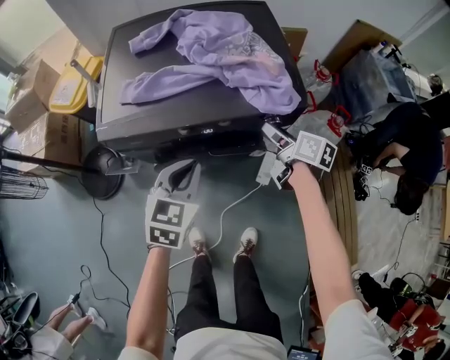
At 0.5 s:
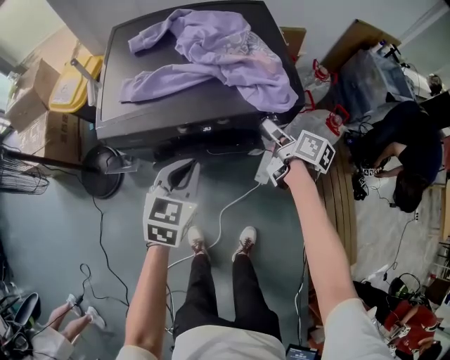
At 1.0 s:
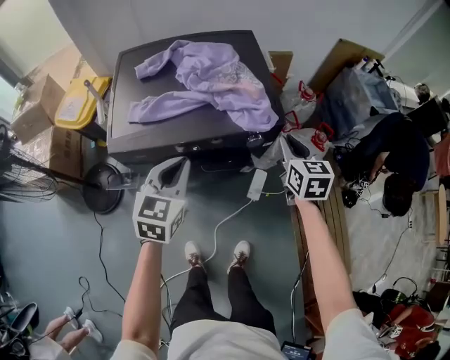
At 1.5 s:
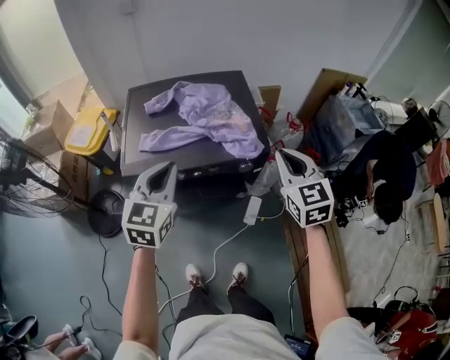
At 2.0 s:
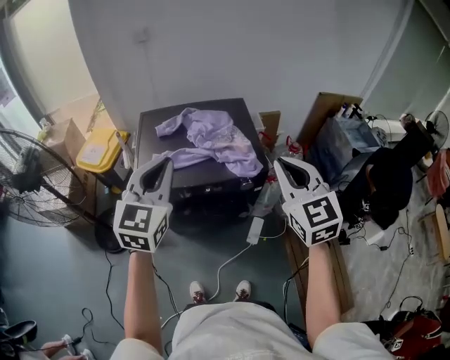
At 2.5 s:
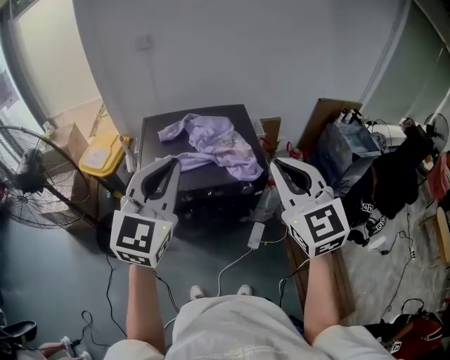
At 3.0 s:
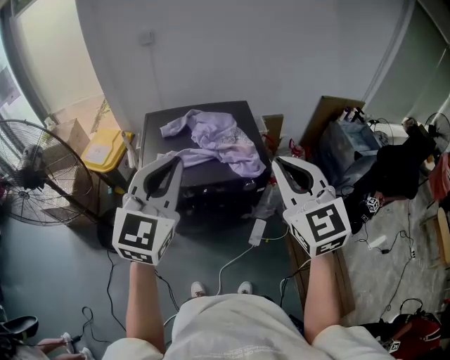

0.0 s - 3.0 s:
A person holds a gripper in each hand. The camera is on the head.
0.0 s - 1.5 s: Both grippers travel together upward, some 25 cm. The right gripper twists some 60 degrees counterclockwise, seen from behind, and closes its fingers.
1.5 s - 3.0 s: The right gripper moves upward and backward, some 20 cm. The left gripper shifts approximately 20 cm upward.

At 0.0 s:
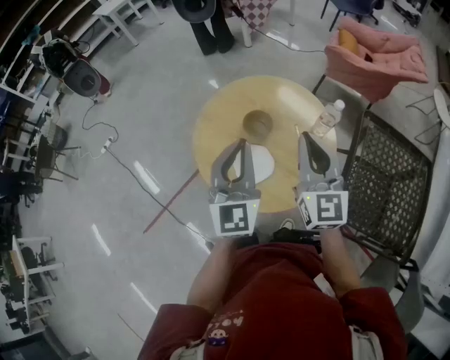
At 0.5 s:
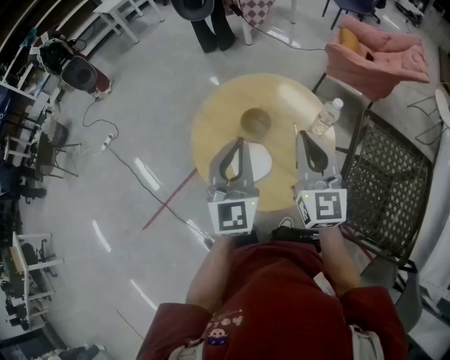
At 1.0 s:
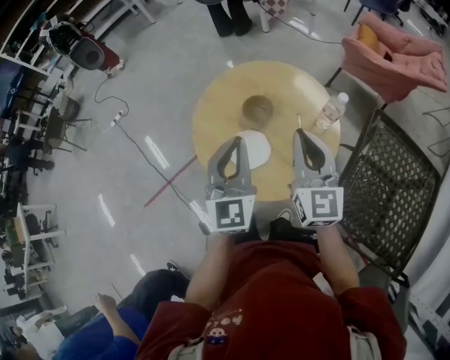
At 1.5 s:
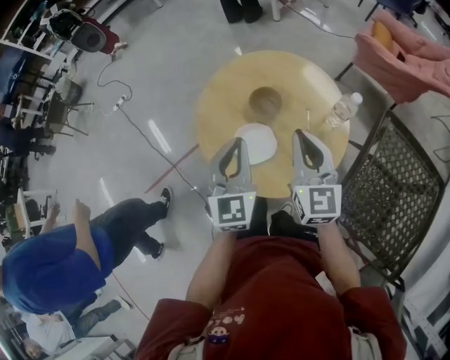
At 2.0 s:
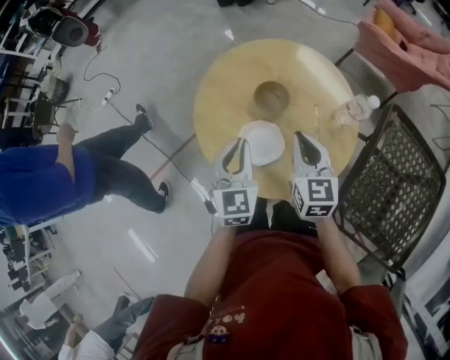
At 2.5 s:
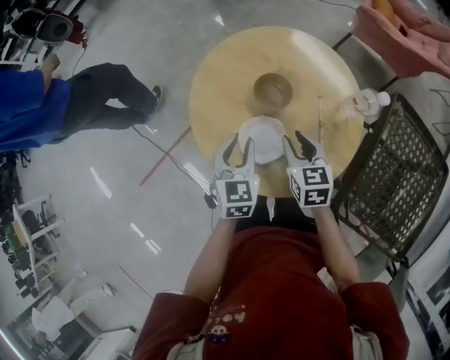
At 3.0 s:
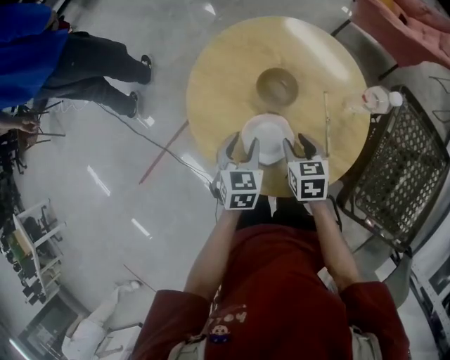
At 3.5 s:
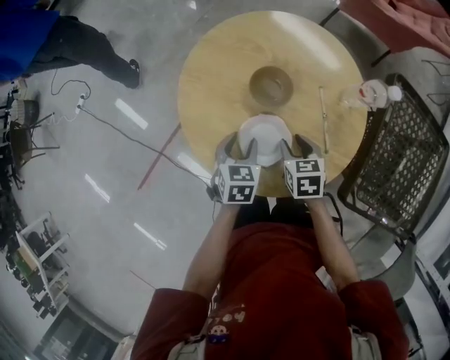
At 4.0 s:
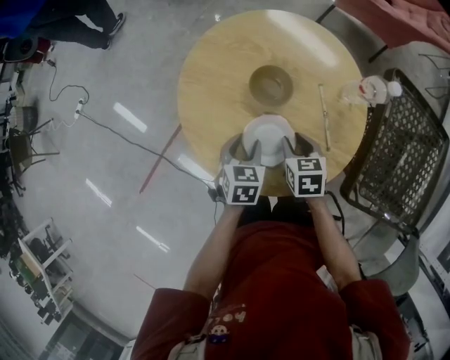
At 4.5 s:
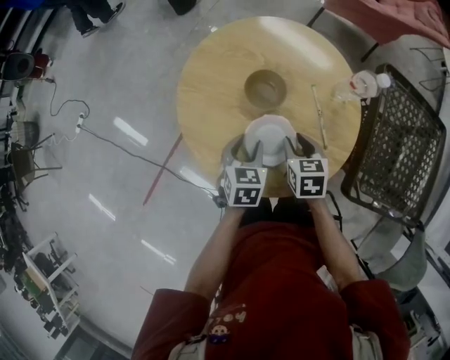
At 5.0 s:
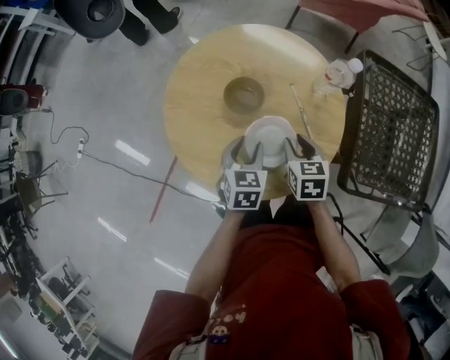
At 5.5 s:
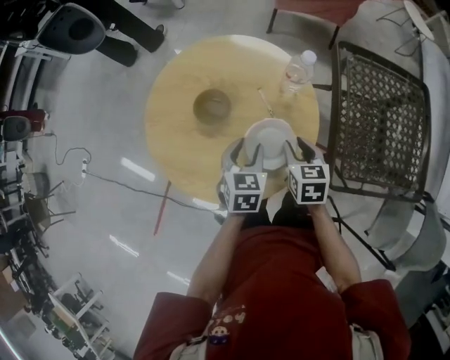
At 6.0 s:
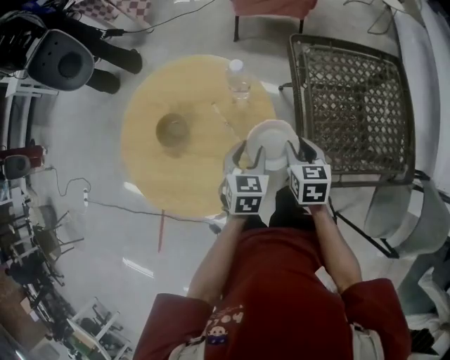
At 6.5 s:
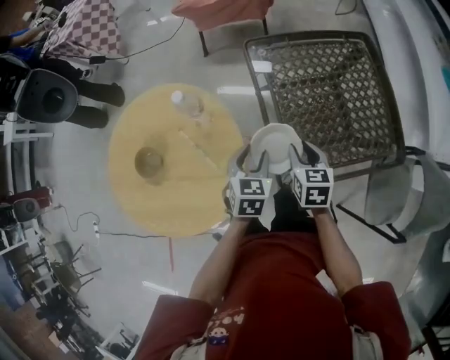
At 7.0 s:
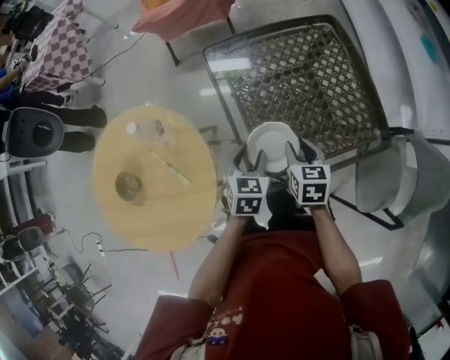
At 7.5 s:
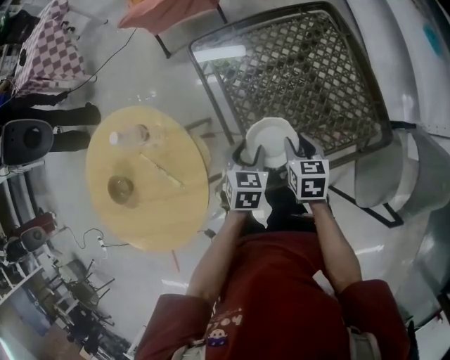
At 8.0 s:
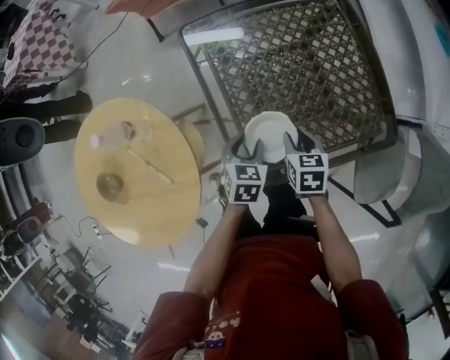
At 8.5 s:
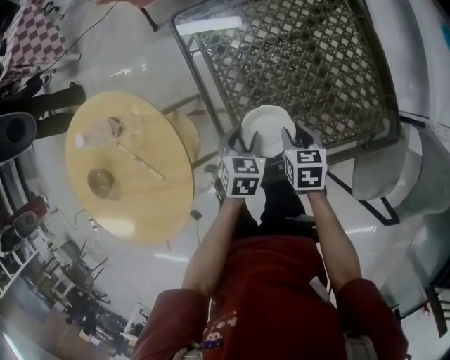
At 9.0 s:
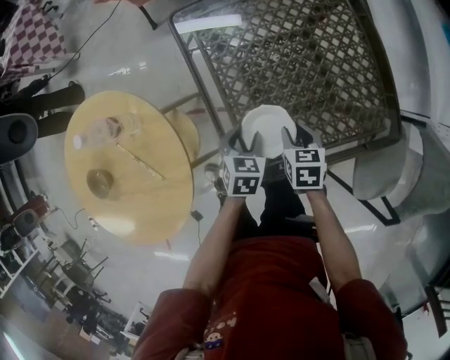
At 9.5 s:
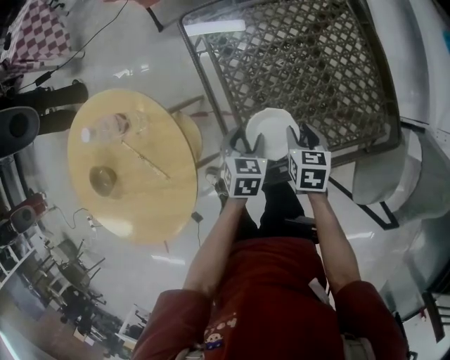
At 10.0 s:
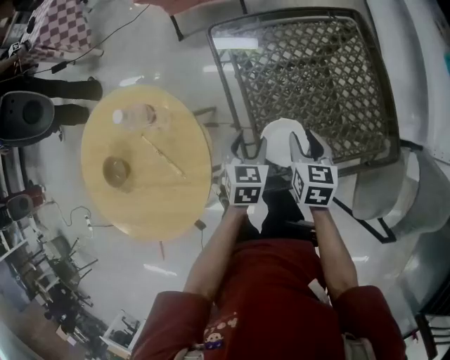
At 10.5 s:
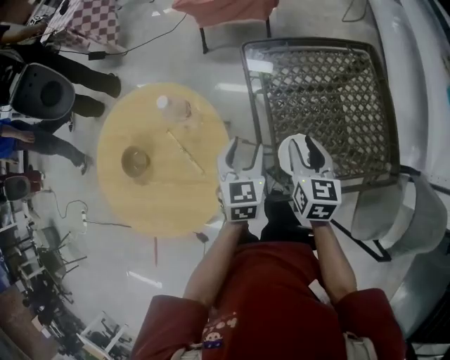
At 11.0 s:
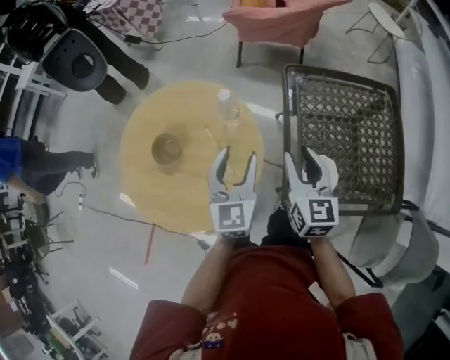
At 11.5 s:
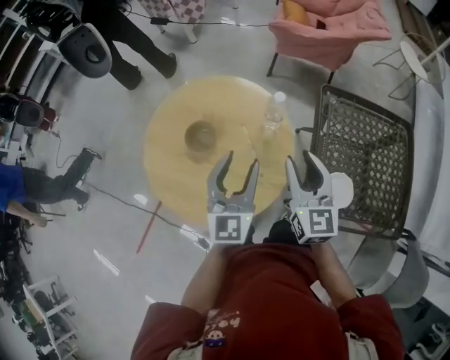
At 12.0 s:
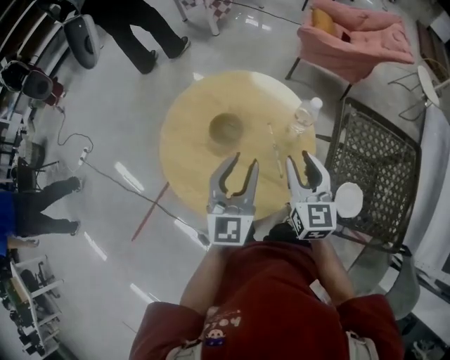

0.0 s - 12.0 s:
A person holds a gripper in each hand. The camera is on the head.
0.0 s - 2.0 s: Both grippers move downward, some 15 cm. The left gripper turns by roughly 30 degrees. The right gripper swivels about 30 degrees.
2.0 s - 4.0 s: Both grippers travel together downward, roughly 20 cm. The right gripper points its fingers about 30 degrees further downward, and opens. Meanwhile the left gripper points its fingers about 30 degrees further downward, and opens its fingers.
4.0 s - 6.0 s: The grippers both shift to the right by approximately 30 cm. The left gripper rotates about 30 degrees, while the right gripper swivels roughly 30 degrees.
6.0 s - 8.0 s: The two grippers go approximately 25 cm to the right and downward. The left gripper turns by some 20 degrees.
8.0 s - 10.0 s: The right gripper moves upward, roughly 5 cm; the left gripper moves roughly 5 cm.
10.0 s - 12.0 s: The left gripper changes place by about 50 cm, points its fingers about 50 degrees further upward, and closes its fingers. The right gripper ends up about 40 cm from where it was, and turns by roughly 50 degrees.

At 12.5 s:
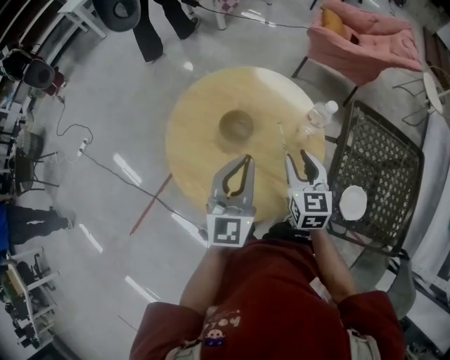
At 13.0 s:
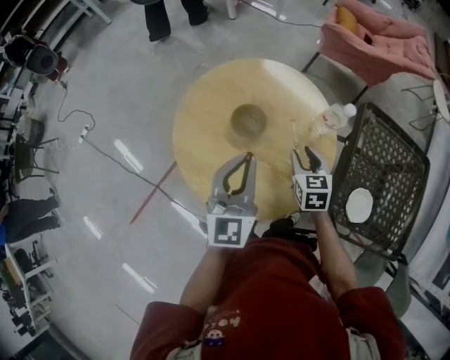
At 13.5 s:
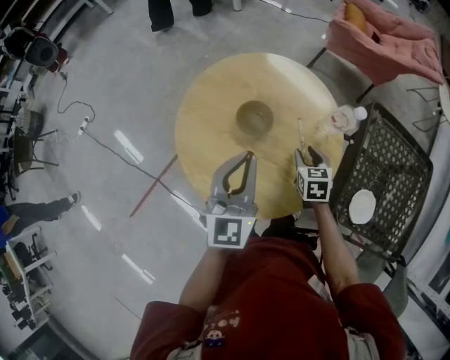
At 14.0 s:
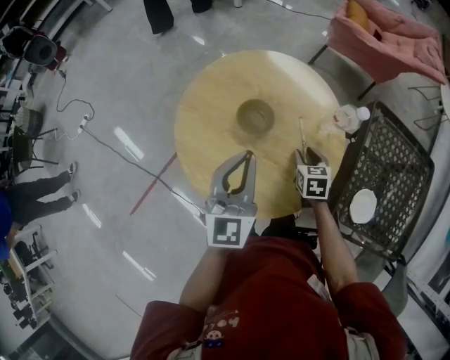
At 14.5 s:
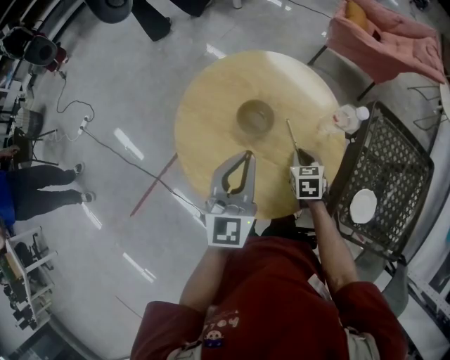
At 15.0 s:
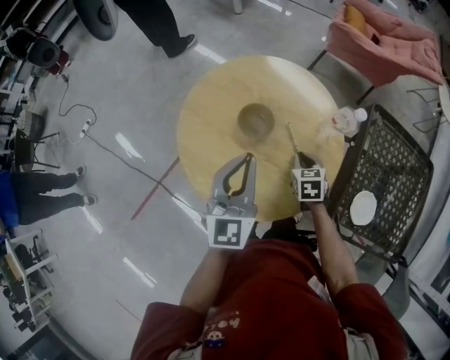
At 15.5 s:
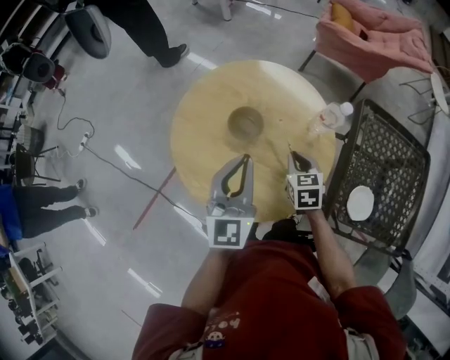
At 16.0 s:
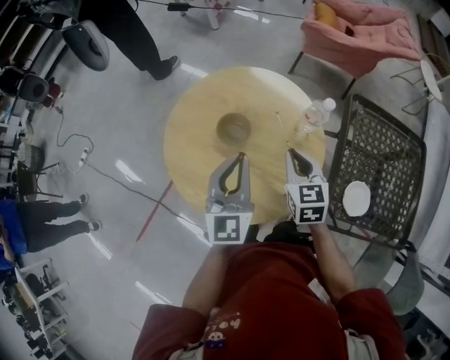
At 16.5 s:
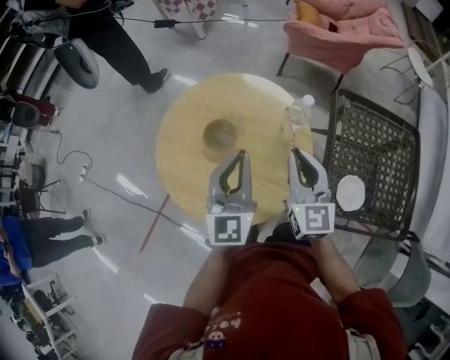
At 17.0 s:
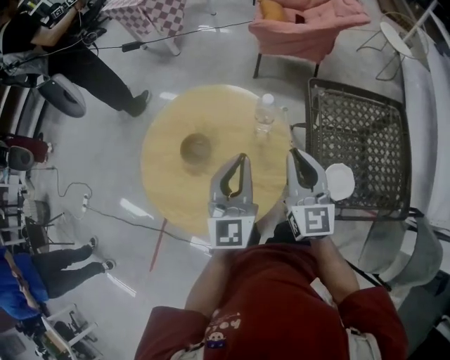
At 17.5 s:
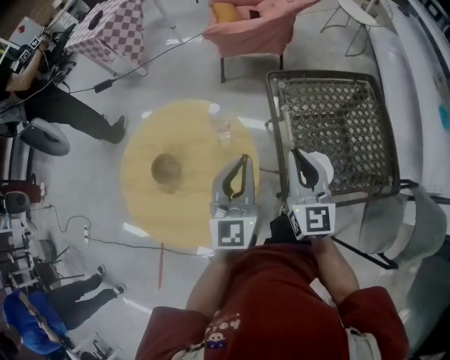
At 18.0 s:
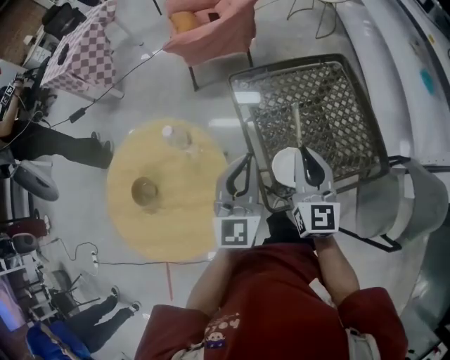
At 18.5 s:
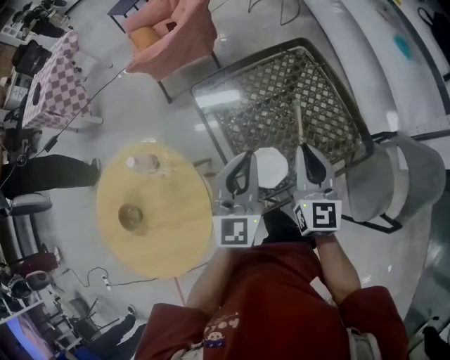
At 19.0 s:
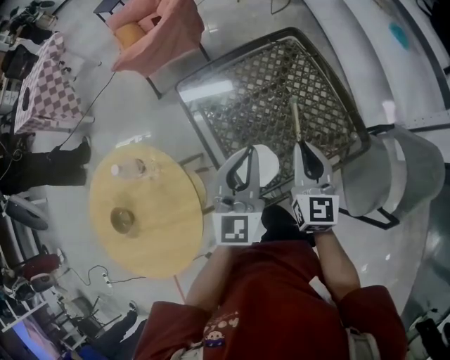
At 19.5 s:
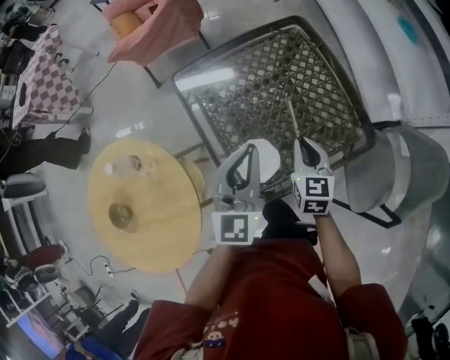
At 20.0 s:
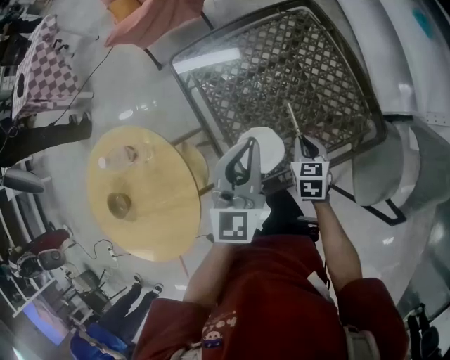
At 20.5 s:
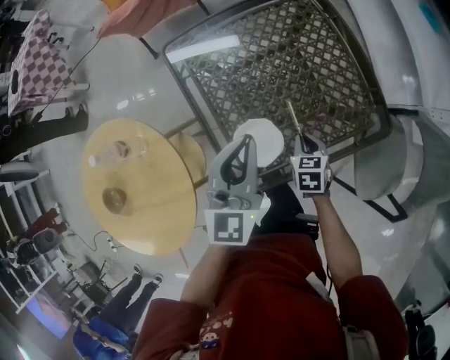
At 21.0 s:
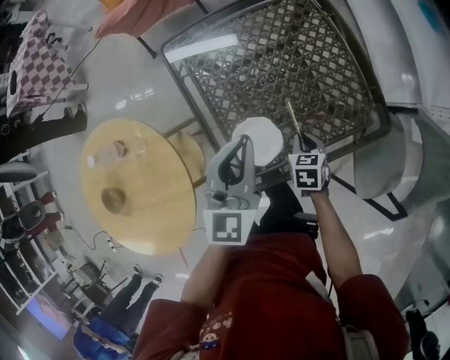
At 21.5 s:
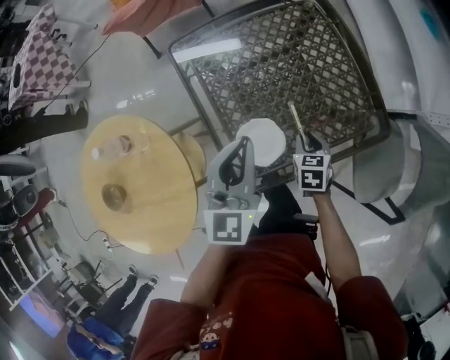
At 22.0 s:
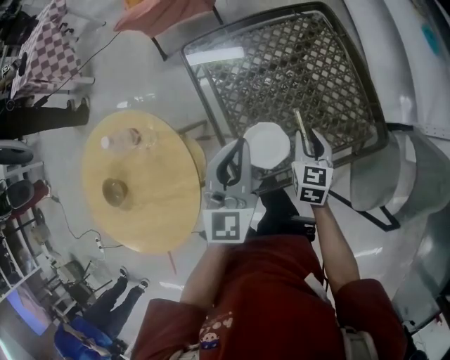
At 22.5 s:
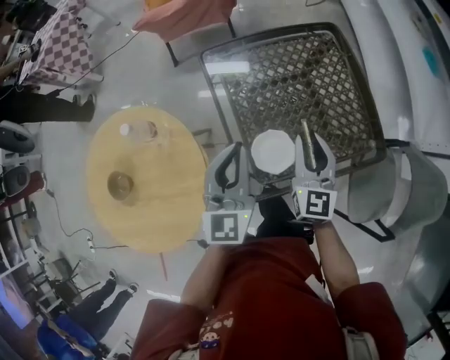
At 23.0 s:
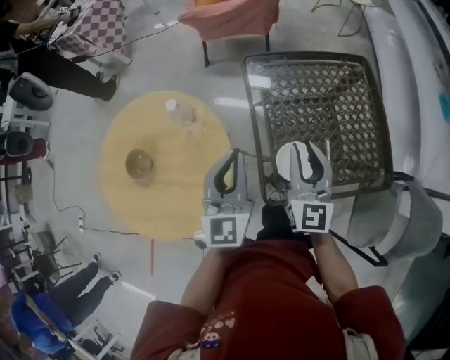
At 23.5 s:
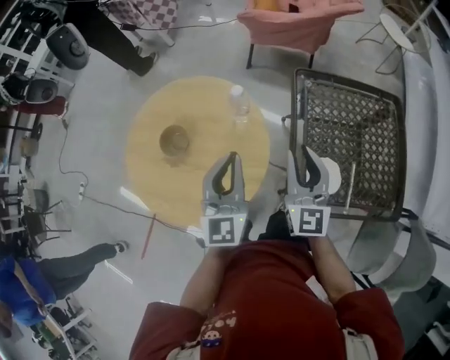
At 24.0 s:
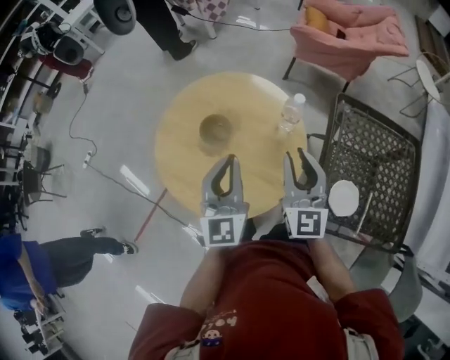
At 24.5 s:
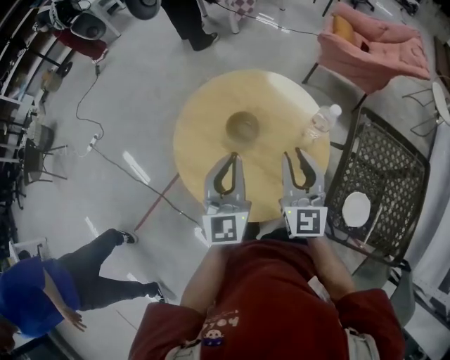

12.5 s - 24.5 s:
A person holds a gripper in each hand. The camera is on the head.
12.5 s - 14.5 s: The left gripper moves to the left, approximately 5 cm. The right gripper travels downward by about 15 cm, swivels some 30 degrees, and closes its fingers.
14.5 s - 16.5 s: The left gripper moves to the right and upward, about 10 cm, while the right gripper heads upward, covering approximately 25 cm, and points its fingers about 50 degrees further upward.
16.5 s - 18.5 s: Both grippers are carried some 40 cm. The right gripper swivels some 40 degrees. The left gripper changes its angle by approximately 40 degrees.
18.5 s - 20.5 s: The left gripper goes roughly 10 cm downward and to the right. Meanwhile the right gripper travels downward by some 30 cm, and points its fingers about 50 degrees further downward.
20.5 s - 22.5 s: The right gripper shifts approximately 20 cm upward, and tips its fingers upward by approximately 50 degrees. Meanwhile the left gripper is displaced to the left by roughly 10 cm.
22.5 s - 24.5 s: Both grippers are carried roughly 50 cm. The left gripper changes its angle by roughly 40 degrees. Meanwhile the right gripper rotates about 50 degrees.
